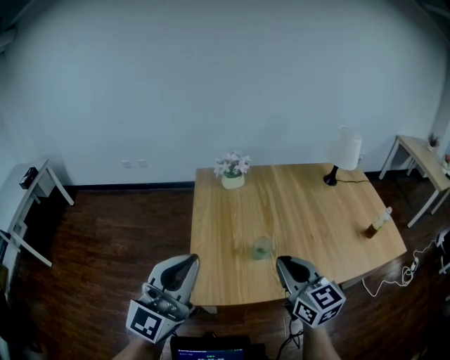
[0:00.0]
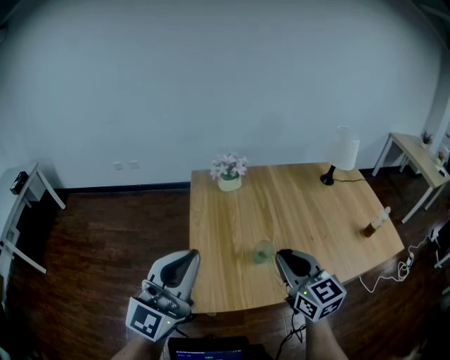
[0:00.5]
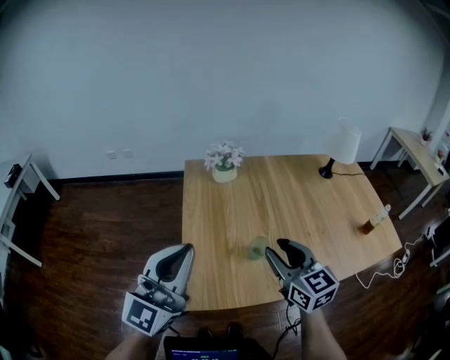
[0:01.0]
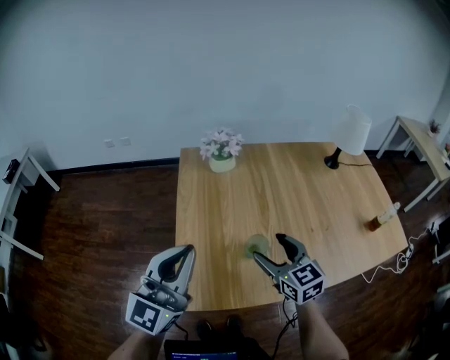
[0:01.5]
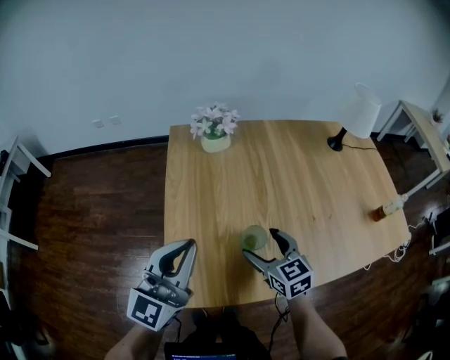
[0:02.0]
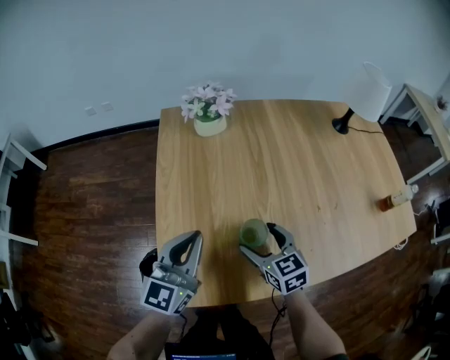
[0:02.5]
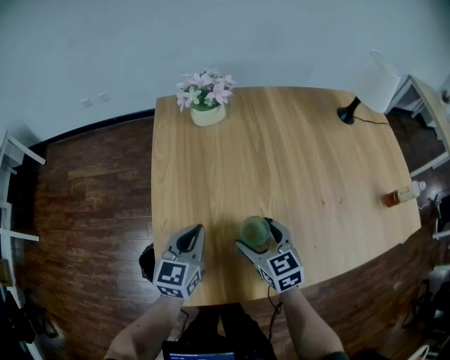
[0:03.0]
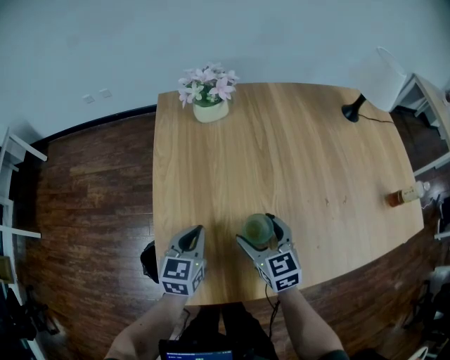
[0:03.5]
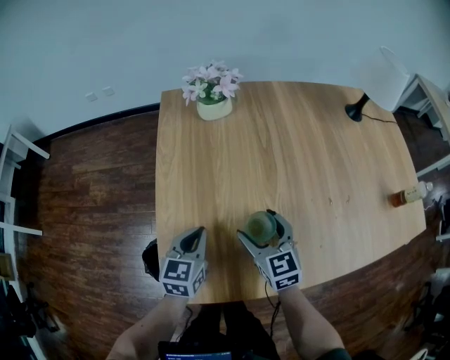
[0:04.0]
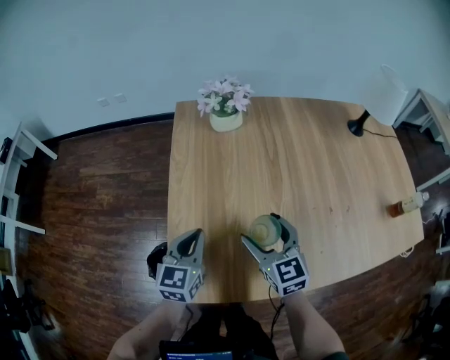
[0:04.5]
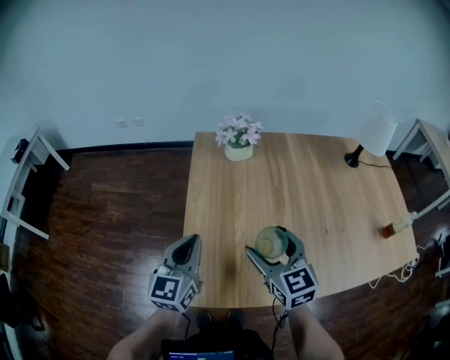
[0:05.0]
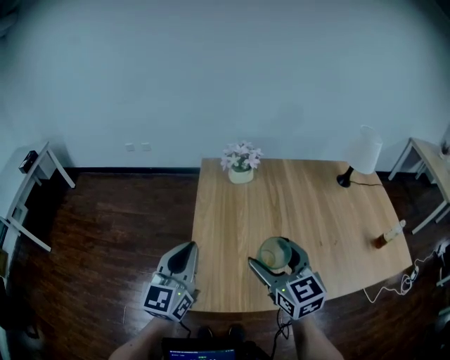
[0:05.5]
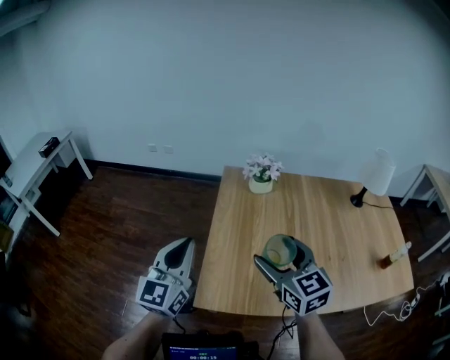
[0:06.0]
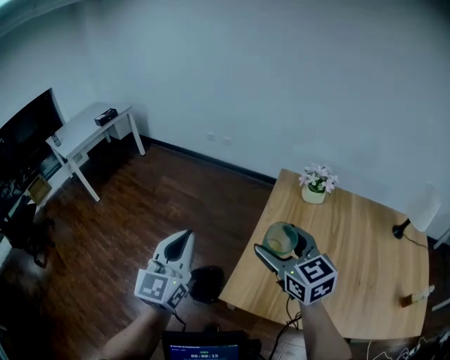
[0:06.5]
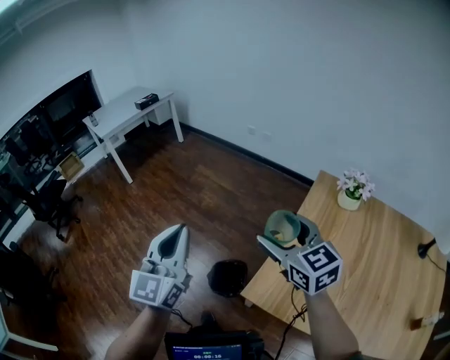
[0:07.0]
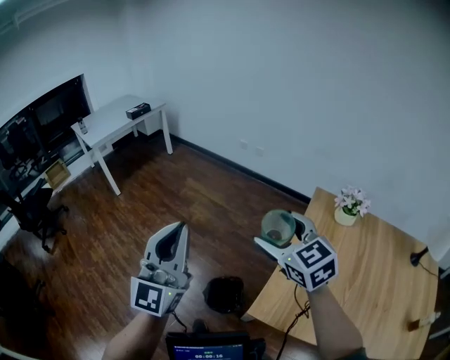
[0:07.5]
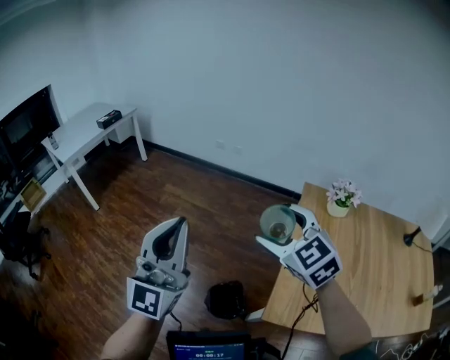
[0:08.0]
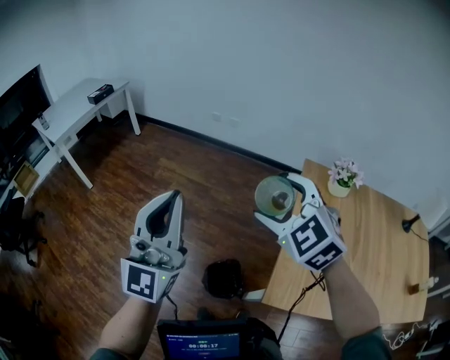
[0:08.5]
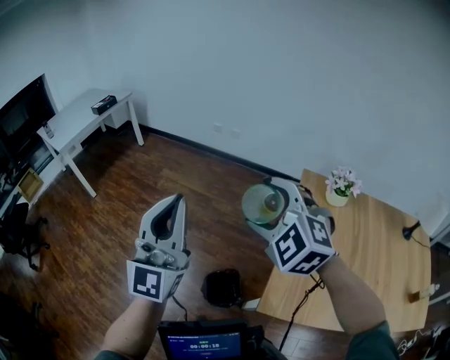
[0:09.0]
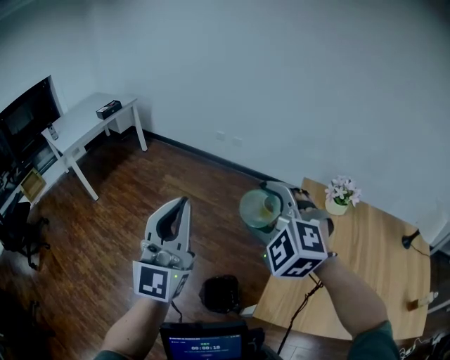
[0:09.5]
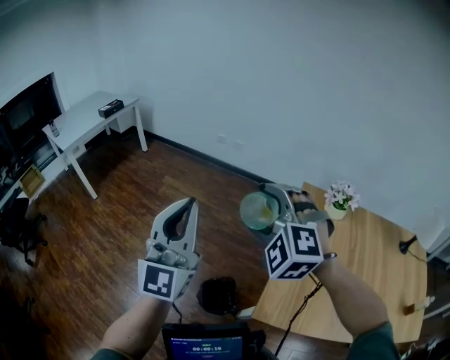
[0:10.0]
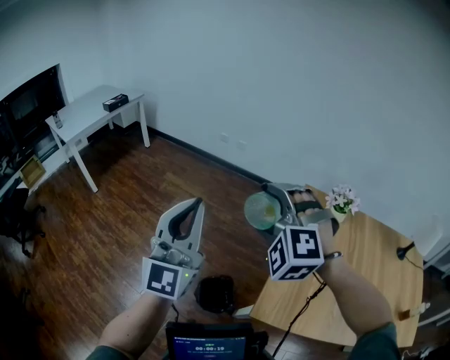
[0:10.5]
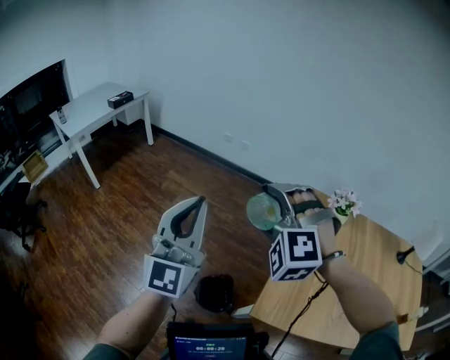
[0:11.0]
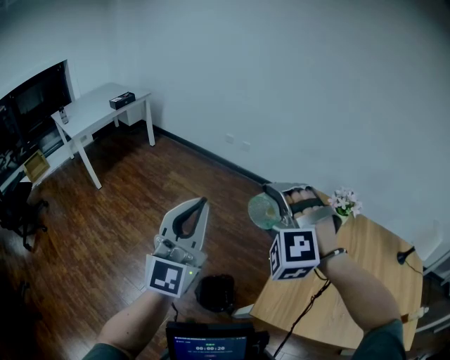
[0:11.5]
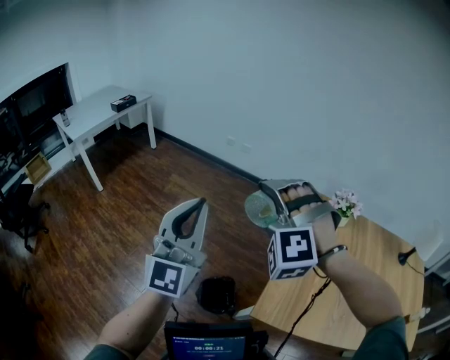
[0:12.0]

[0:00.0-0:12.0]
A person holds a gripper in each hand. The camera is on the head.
0:00.0 to 0:02.0: The left gripper moves forward and downward, approximately 20 cm; the right gripper is displaced downward and forward by roughly 25 cm, and opens up.
0:02.0 to 0:04.0: The left gripper goes about 25 cm downward, and tilts its fingers about 40 degrees downward, while the right gripper goes some 5 cm downward.
0:04.0 to 0:06.0: The left gripper heads upward and to the left, covering about 30 cm, and tips its fingers upward by roughly 30 degrees; the right gripper goes roughly 25 cm upward.
0:06.0 to 0:08.0: The right gripper changes place by some 35 cm, and changes its angle by roughly 30 degrees, while the left gripper moves approximately 30 cm, and rotates about 40 degrees.
0:08.0 to 0:10.0: The right gripper rotates around the line of its fingers by roughly 40 degrees, counterclockwise from behind. The left gripper changes place by about 5 cm.
0:10.0 to 0:12.0: The right gripper turns by approximately 20 degrees.

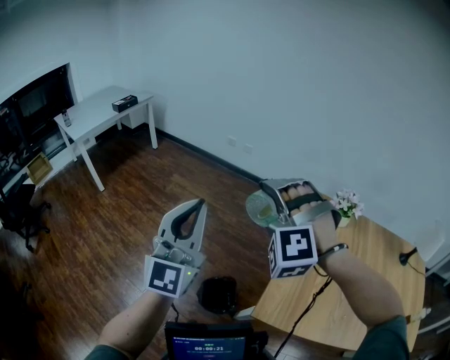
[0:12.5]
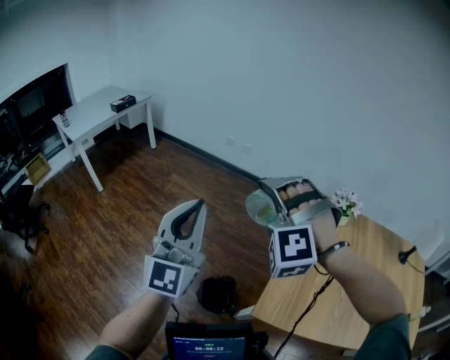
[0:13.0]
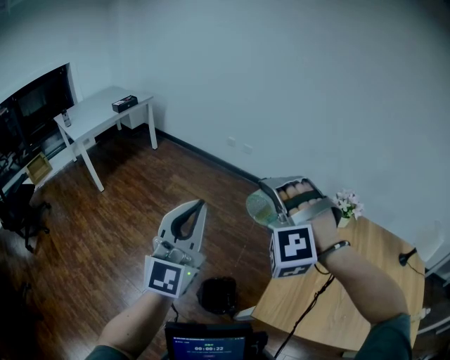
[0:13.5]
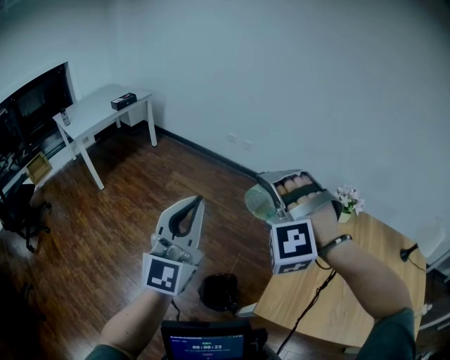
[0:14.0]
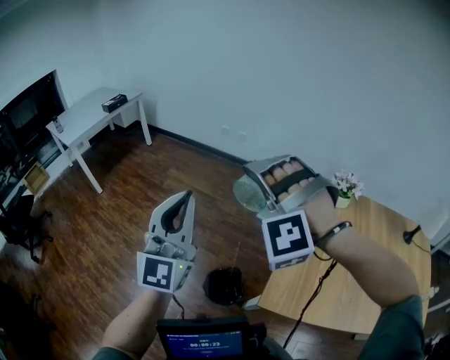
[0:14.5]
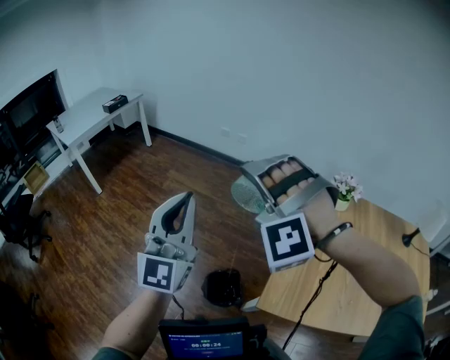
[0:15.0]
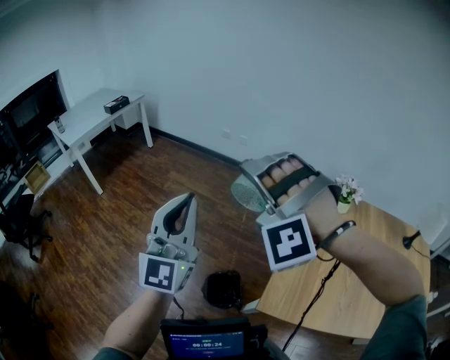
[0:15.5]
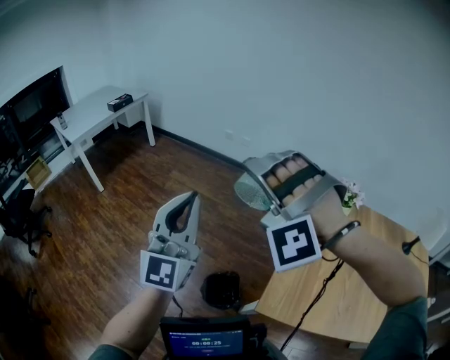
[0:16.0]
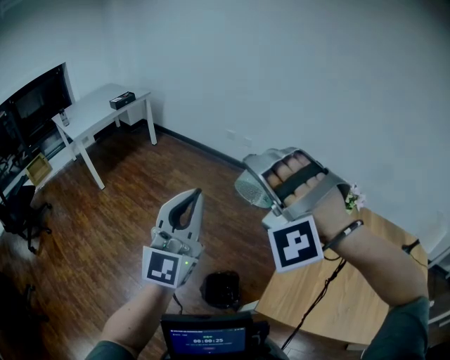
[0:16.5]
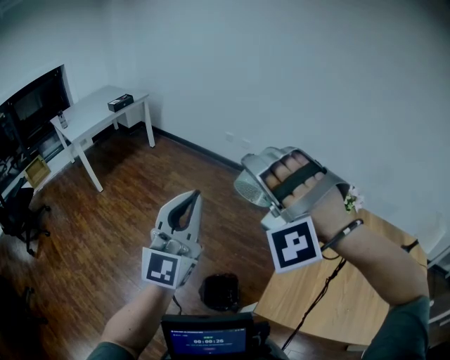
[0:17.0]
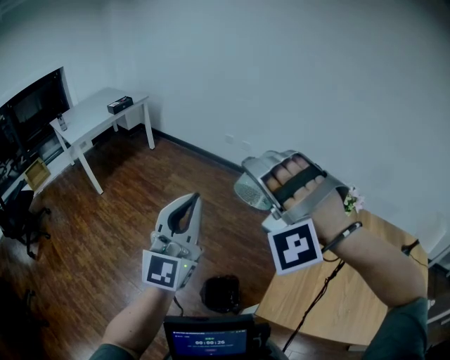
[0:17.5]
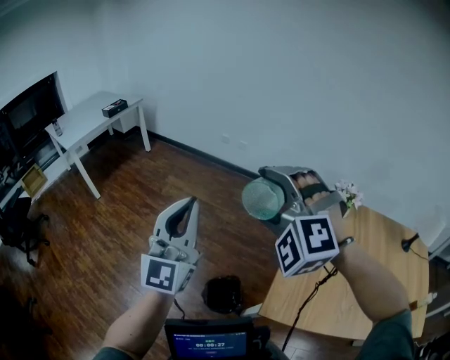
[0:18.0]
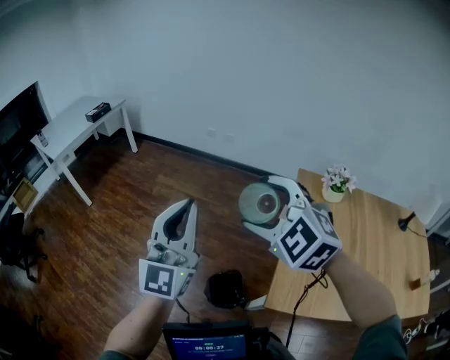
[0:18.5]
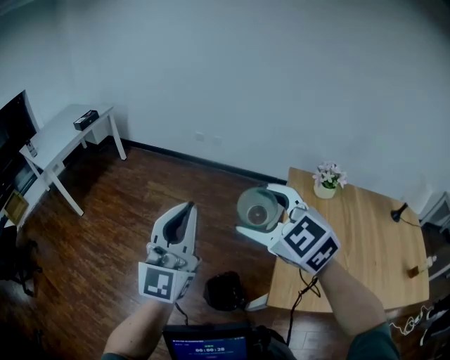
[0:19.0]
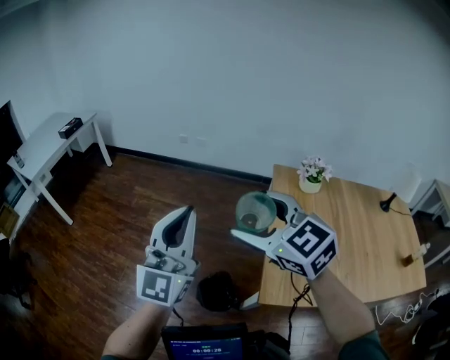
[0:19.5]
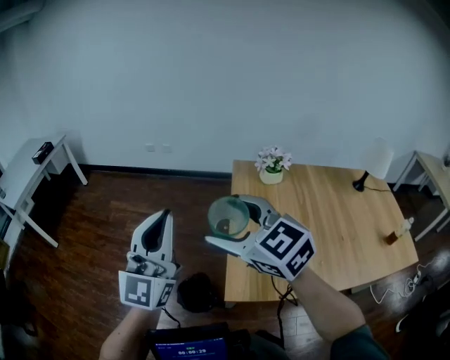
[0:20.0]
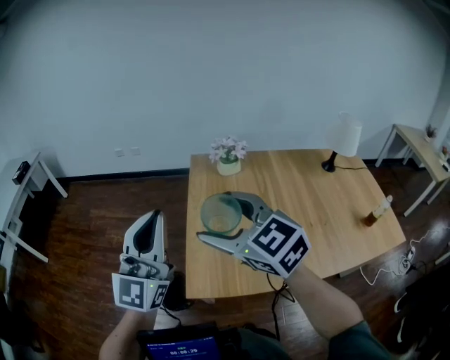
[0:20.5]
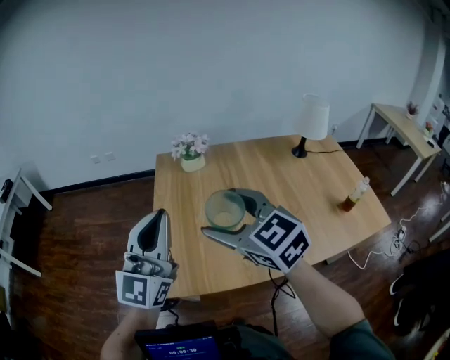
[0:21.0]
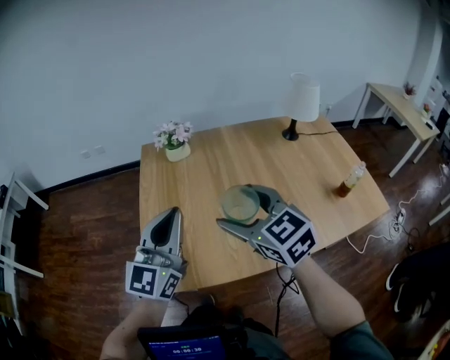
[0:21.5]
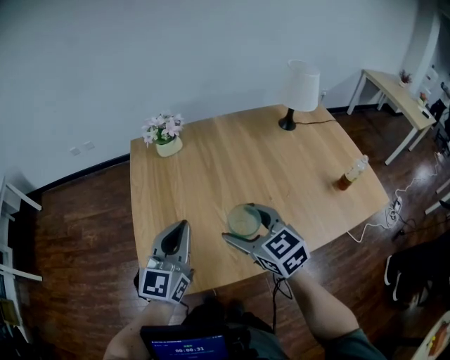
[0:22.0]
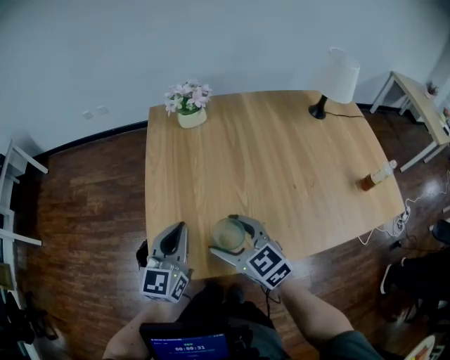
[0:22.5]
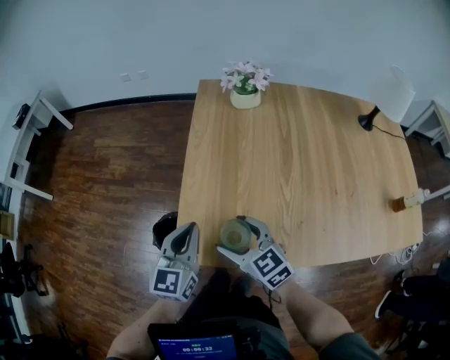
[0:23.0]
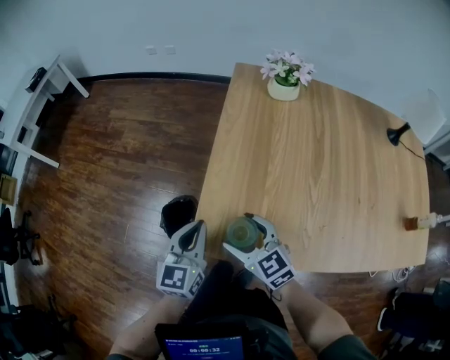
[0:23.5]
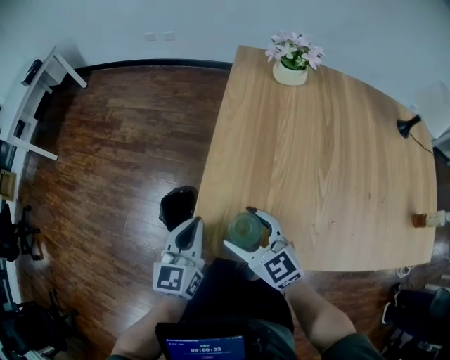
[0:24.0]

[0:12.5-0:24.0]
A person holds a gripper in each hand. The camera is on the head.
0:12.5 to 0:14.5: The grippers stay close to where they were, moving slightly.
0:14.5 to 0:16.5: The grippers stay close to where they were, moving slightly.
0:16.5 to 0:18.5: The right gripper shifts about 5 cm downward, and rolls clockwise, seen from behind, by about 70 degrees.
0:18.5 to 0:20.0: The right gripper heads to the right and backward, covering roughly 15 cm, and swivels about 30 degrees. Meanwhile the left gripper is displaced to the right by some 15 cm.
0:20.0 to 0:22.0: The two grippers travel together, to the right, roughly 40 cm. The two grippers go roughly 20 cm downward. The left gripper changes its angle by approximately 30 degrees. Meanwhile the right gripper changes its angle by roughly 30 degrees.
0:22.0 to 0:24.0: The right gripper shifts by roughly 30 cm, and swivels approximately 30 degrees; the left gripper moves about 30 cm, and changes its angle by approximately 30 degrees.

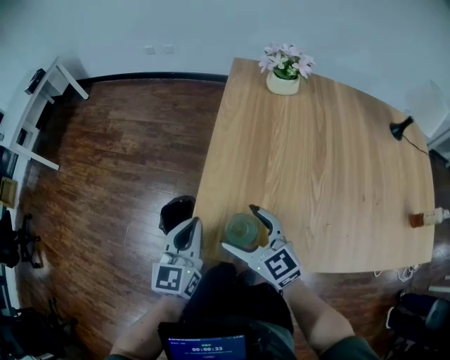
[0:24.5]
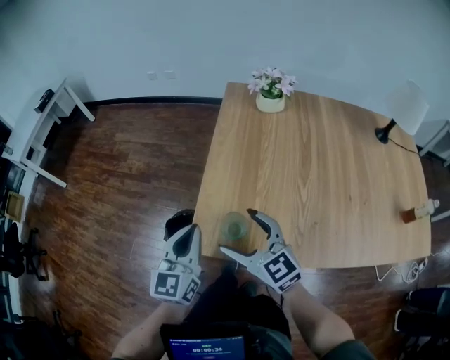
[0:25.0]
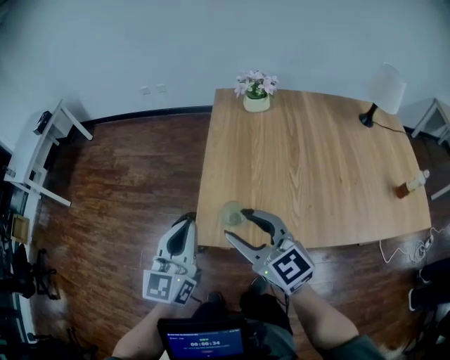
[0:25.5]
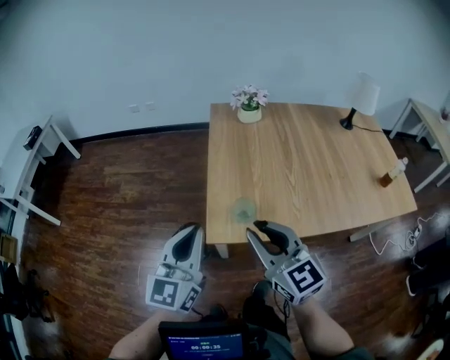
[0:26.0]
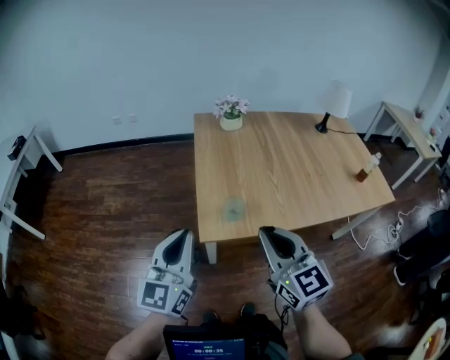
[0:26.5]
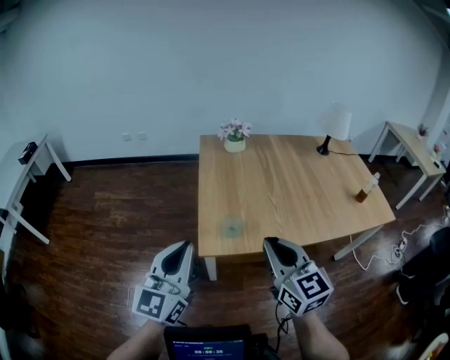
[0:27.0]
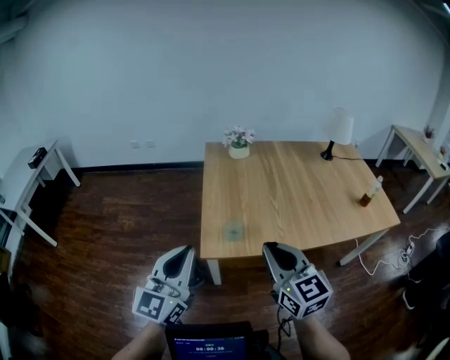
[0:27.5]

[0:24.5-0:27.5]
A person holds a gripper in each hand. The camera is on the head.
0:24.5 to 0:26.0: The two grippers go roughly 25 cm upward and backward. The right gripper turns by roughly 30 degrees, and closes its fingers. The left gripper turns by approximately 20 degrees.
0:26.0 to 0:27.5: The left gripper goes about 10 cm backward and upward. The right gripper heads backward and to the right, covering about 10 cm.
